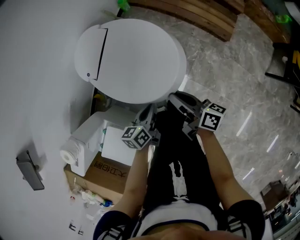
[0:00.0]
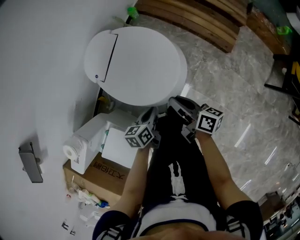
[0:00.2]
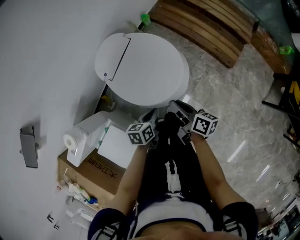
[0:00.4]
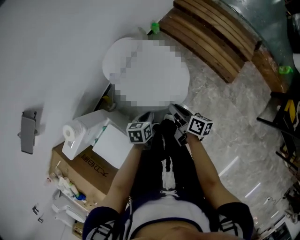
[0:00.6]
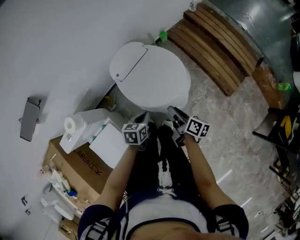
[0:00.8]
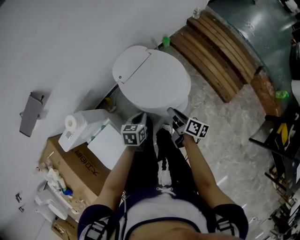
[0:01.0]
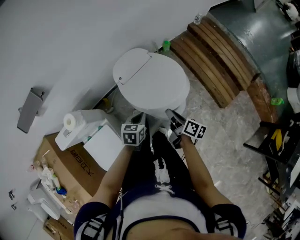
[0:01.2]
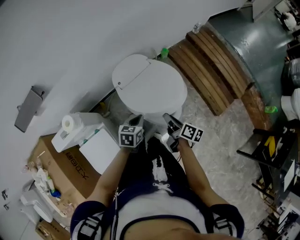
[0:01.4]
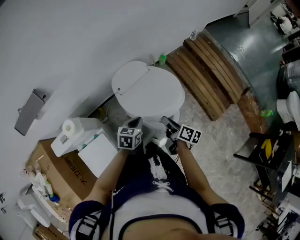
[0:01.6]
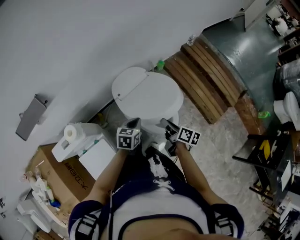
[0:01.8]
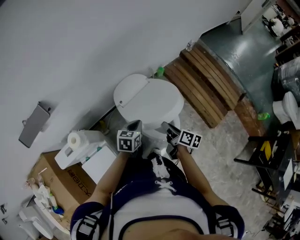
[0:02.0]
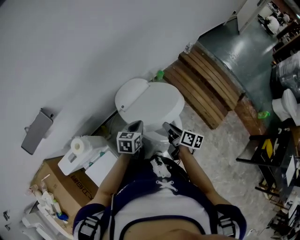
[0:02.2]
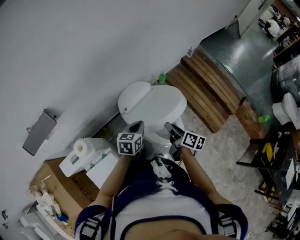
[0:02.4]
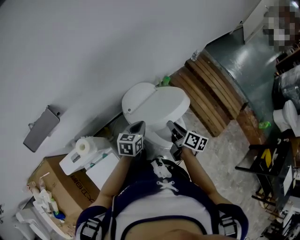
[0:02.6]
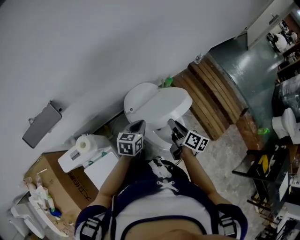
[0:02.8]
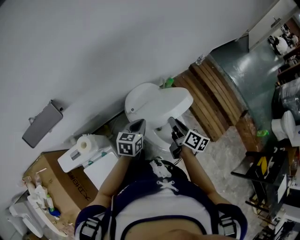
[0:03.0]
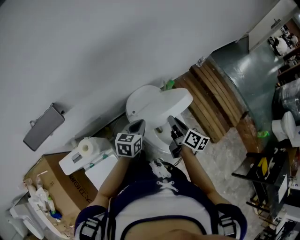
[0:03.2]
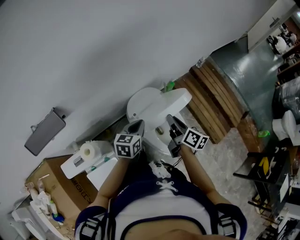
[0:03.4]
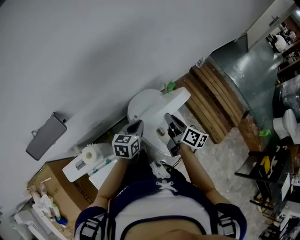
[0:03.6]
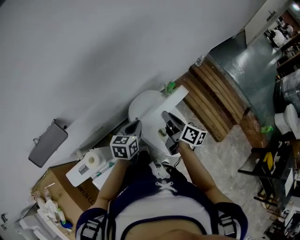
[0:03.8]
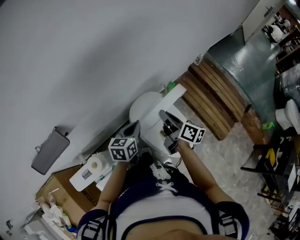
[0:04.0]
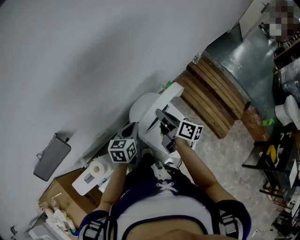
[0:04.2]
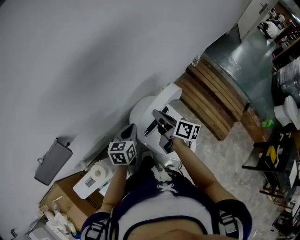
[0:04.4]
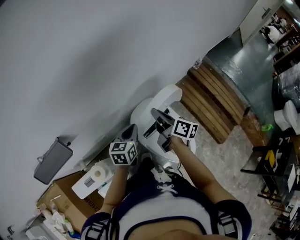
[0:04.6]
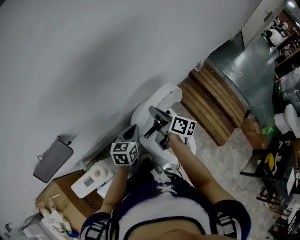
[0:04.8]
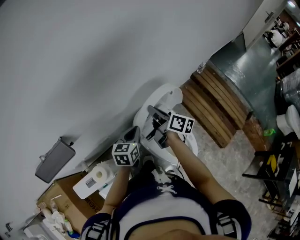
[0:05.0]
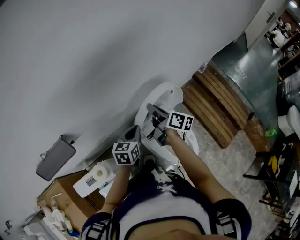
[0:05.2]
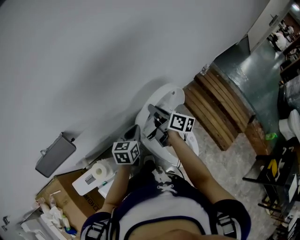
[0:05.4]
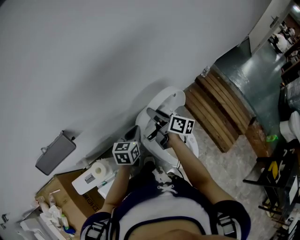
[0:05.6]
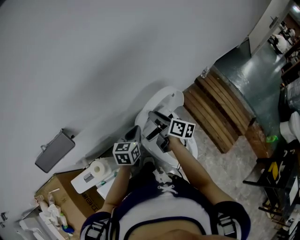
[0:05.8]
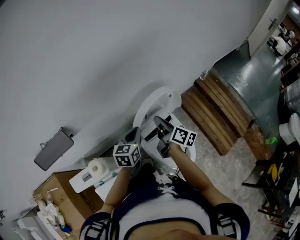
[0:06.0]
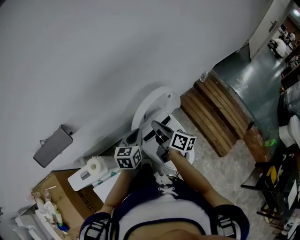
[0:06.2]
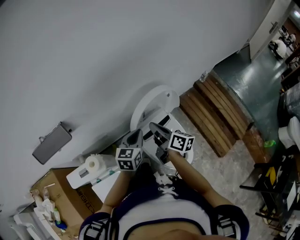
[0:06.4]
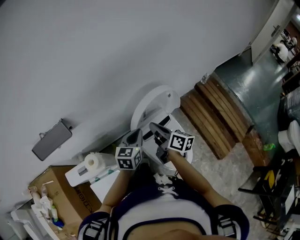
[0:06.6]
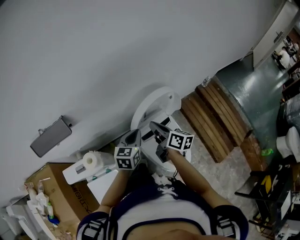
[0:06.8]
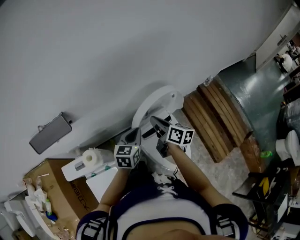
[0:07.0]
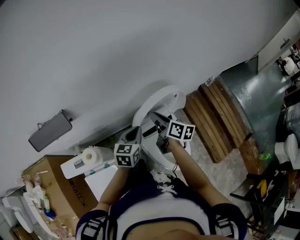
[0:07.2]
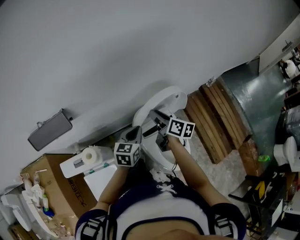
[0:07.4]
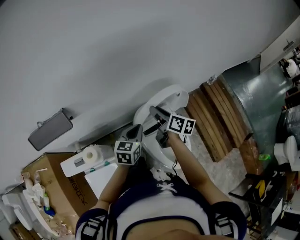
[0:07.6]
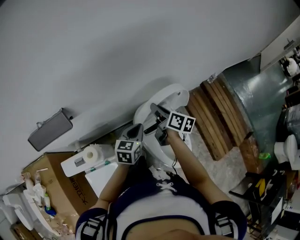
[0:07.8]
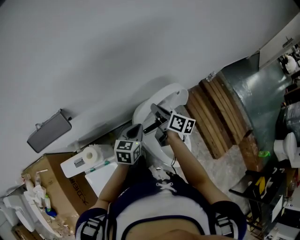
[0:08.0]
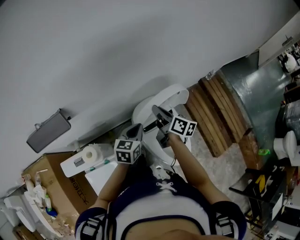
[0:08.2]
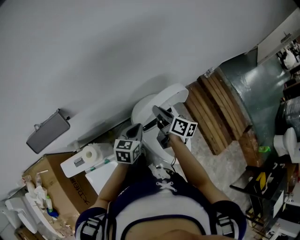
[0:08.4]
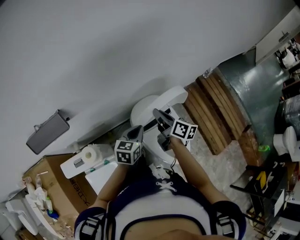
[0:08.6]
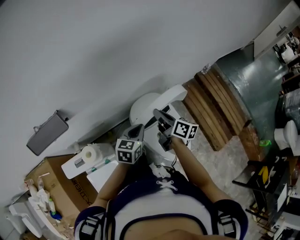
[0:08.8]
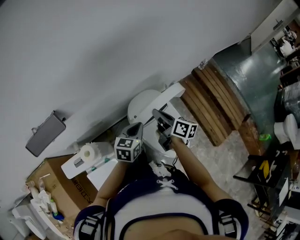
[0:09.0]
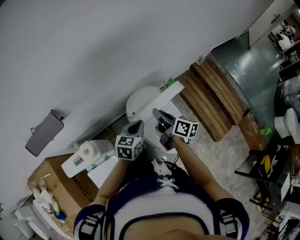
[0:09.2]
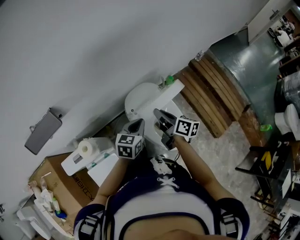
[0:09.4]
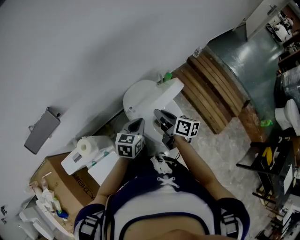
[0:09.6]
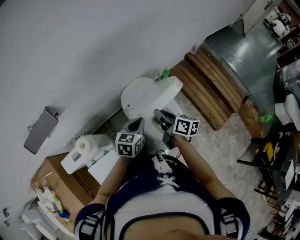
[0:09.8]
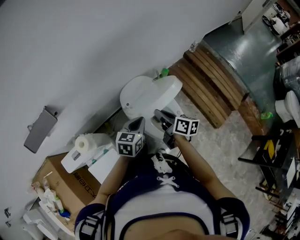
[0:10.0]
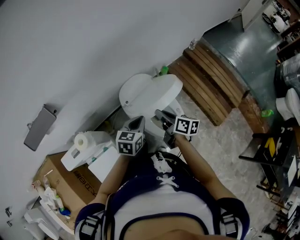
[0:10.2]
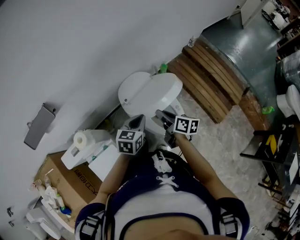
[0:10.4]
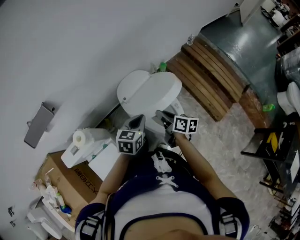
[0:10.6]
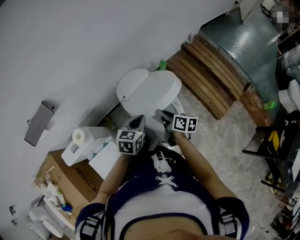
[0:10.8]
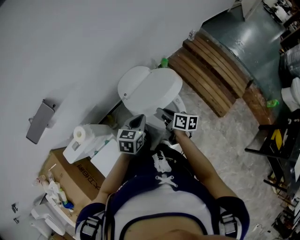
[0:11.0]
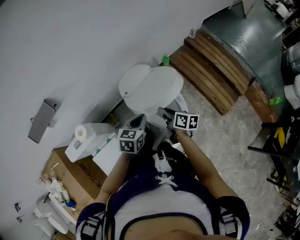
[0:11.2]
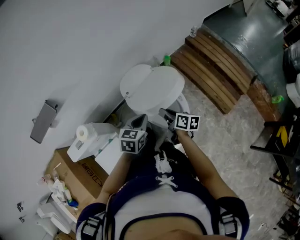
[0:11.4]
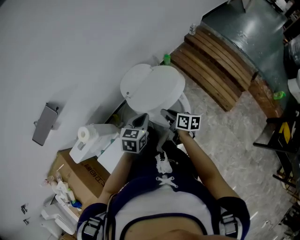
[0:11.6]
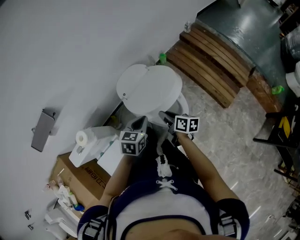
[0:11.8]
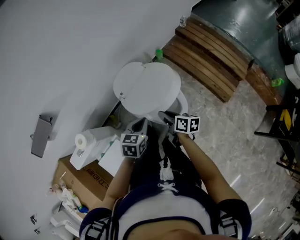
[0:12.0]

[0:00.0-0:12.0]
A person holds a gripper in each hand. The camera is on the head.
0.0 to 1.6 s: The left gripper goes approximately 20 cm upward, to the left and forward, and rotates approximately 30 degrees. Meanwhile the right gripper heads upward, forward and to the left, covering about 10 cm.
1.6 to 3.0 s: The left gripper goes some 15 cm to the left, forward and upward, while the right gripper heads upward, forward and to the left, covering roughly 20 cm.
3.0 to 4.4 s: The grippers both shift forward and to the left by some 15 cm.
4.4 to 6.0 s: The right gripper opens, then closes once more.
6.0 to 7.6 s: The right gripper shifts by some 5 cm.
7.6 to 9.0 s: The left gripper shifts by some 5 cm. Meanwhile the right gripper moves backward, about 5 cm.
9.0 to 10.4 s: The left gripper travels backward and to the right by some 10 cm; the right gripper moves backward, to the right and downward, about 15 cm.
10.4 to 12.0 s: The left gripper is displaced backward by roughly 5 cm. The right gripper heads downward and backward, covering approximately 10 cm.

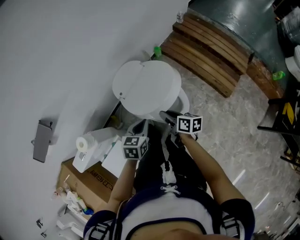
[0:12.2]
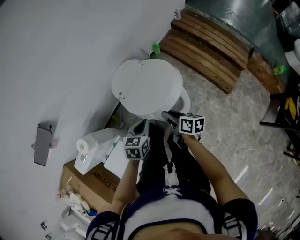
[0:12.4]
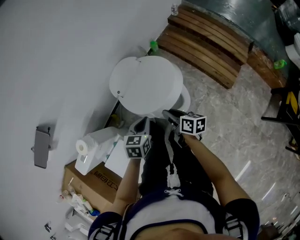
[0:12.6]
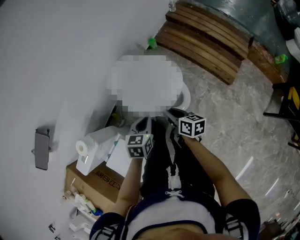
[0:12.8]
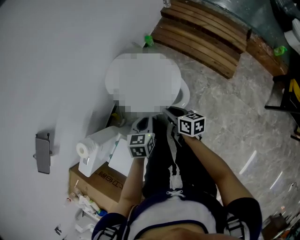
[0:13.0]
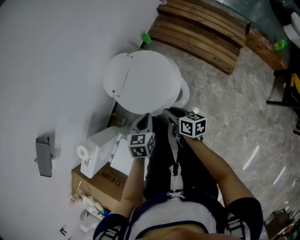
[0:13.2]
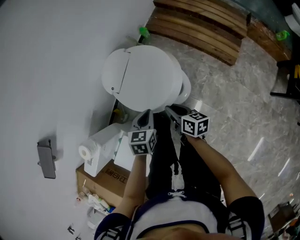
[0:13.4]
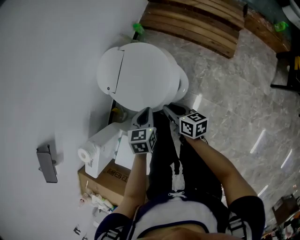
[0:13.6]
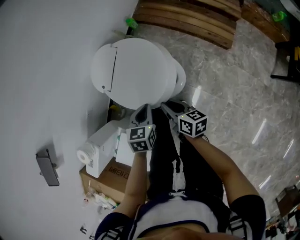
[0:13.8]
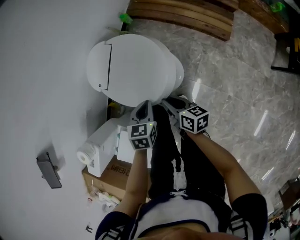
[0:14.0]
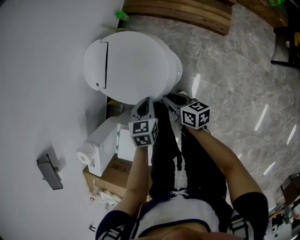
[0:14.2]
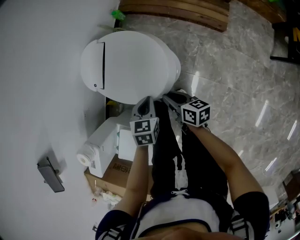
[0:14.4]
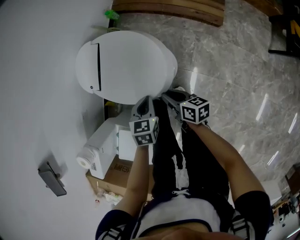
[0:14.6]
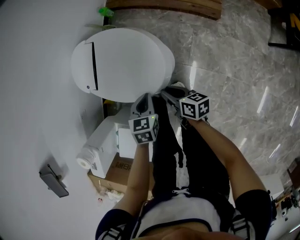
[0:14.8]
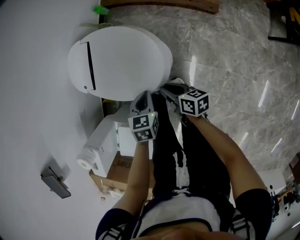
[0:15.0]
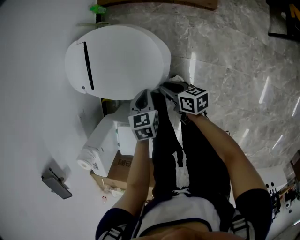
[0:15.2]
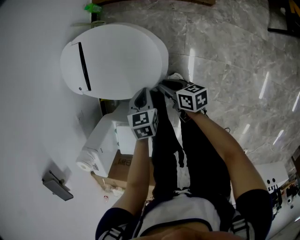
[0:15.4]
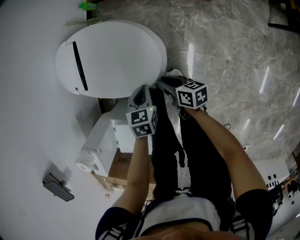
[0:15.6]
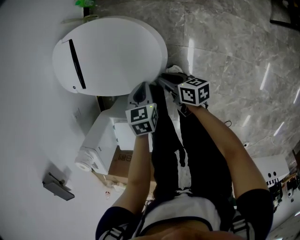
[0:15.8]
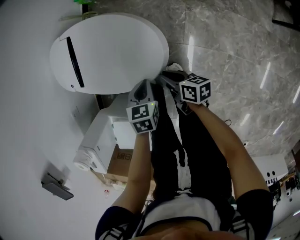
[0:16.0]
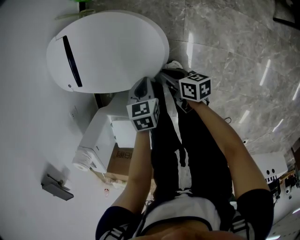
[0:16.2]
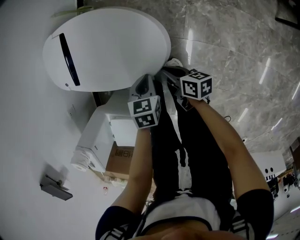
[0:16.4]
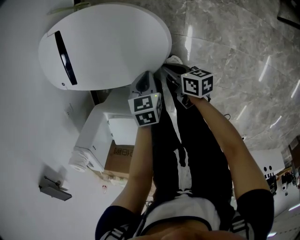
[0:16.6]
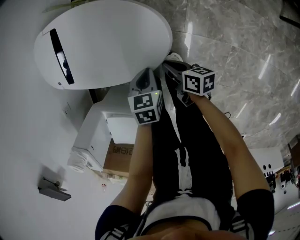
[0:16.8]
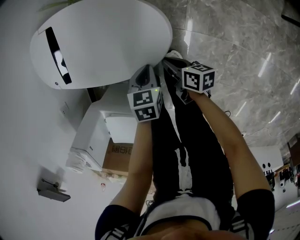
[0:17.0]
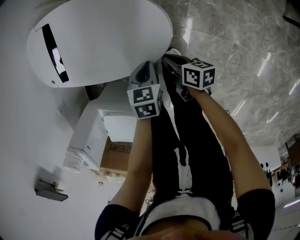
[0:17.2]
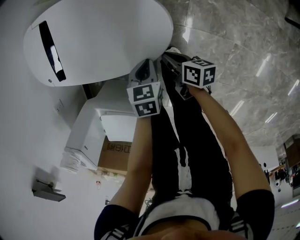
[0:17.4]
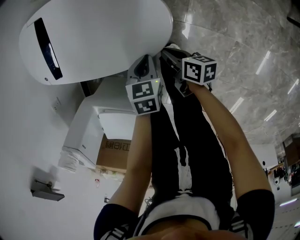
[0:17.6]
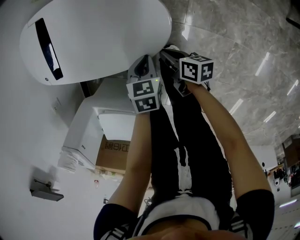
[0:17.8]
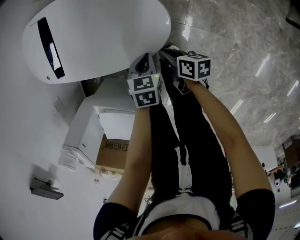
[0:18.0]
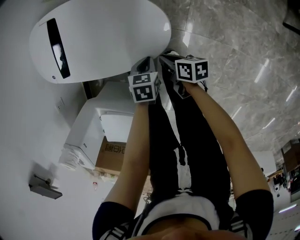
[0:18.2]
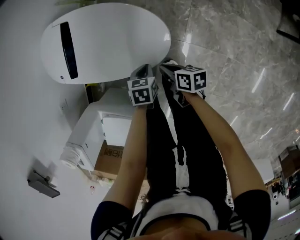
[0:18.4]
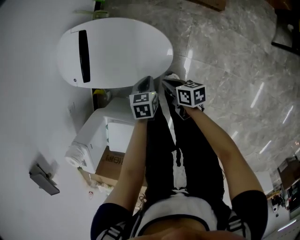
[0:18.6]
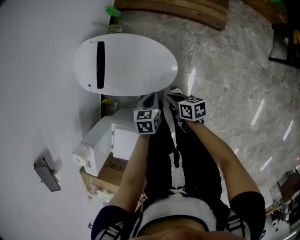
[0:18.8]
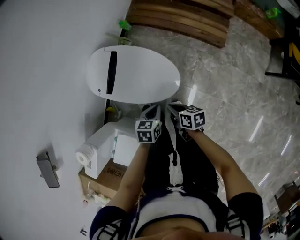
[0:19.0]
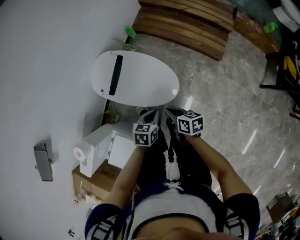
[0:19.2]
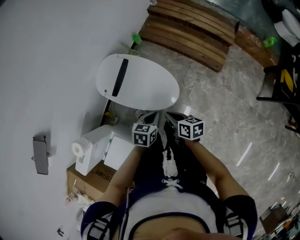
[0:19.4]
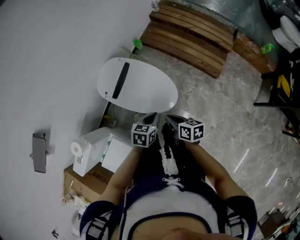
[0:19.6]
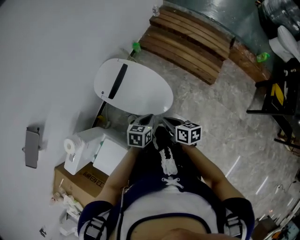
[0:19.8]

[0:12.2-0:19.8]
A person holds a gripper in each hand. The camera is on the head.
12.2 to 13.8 s: The left gripper heads downward and to the right, covering about 10 cm. Meanwhile the right gripper shifts about 10 cm downward and backward.
13.8 to 15.2 s: The right gripper shifts about 10 cm downward, while the left gripper heads downward and to the right, covering roughly 10 cm.
15.2 to 16.8 s: The two grippers go roughly 15 cm downward.
16.8 to 18.2 s: The left gripper moves downward, about 10 cm.
18.2 to 19.8 s: The grippers both shift upward by approximately 40 cm. The left gripper changes its angle by some 20 degrees. The right gripper changes its angle by some 30 degrees.

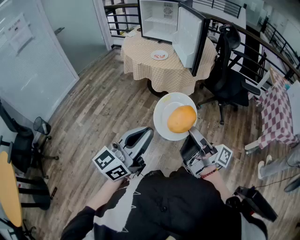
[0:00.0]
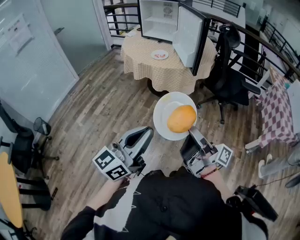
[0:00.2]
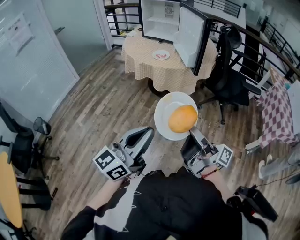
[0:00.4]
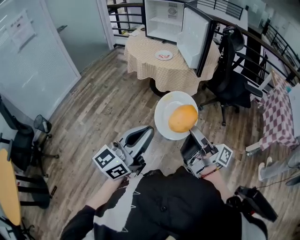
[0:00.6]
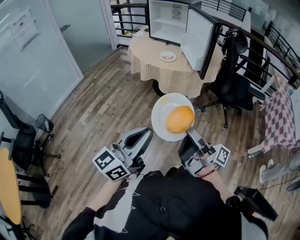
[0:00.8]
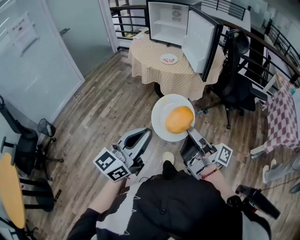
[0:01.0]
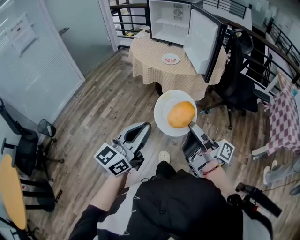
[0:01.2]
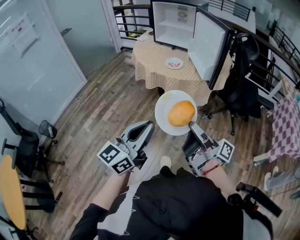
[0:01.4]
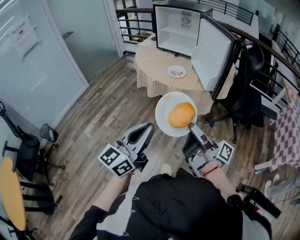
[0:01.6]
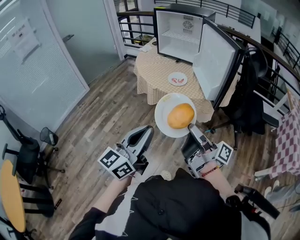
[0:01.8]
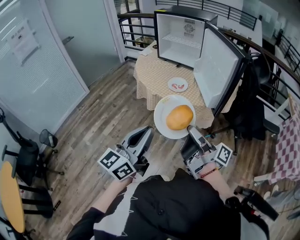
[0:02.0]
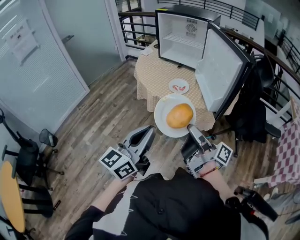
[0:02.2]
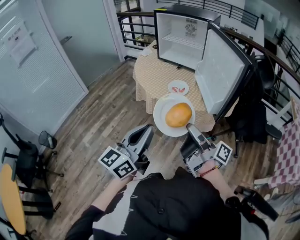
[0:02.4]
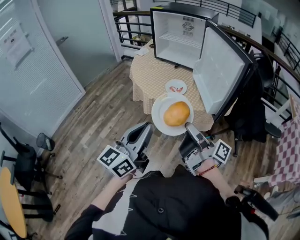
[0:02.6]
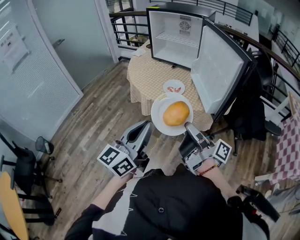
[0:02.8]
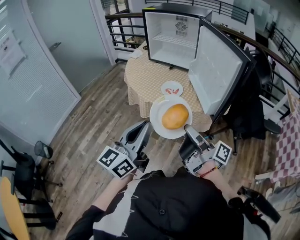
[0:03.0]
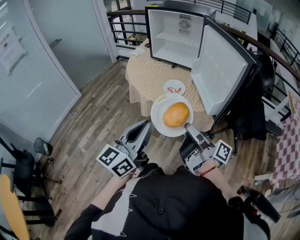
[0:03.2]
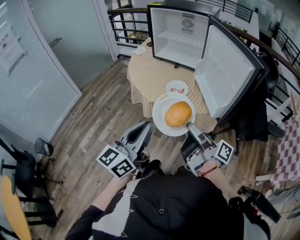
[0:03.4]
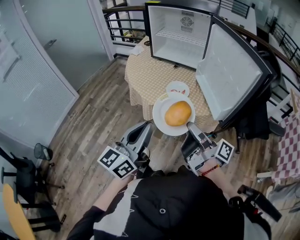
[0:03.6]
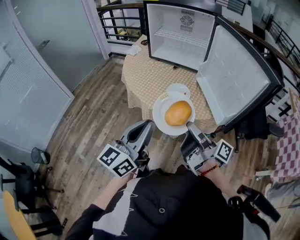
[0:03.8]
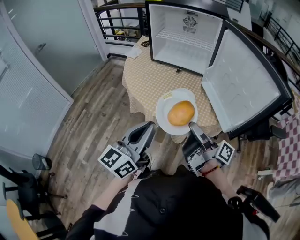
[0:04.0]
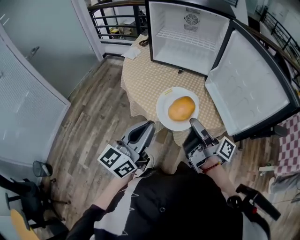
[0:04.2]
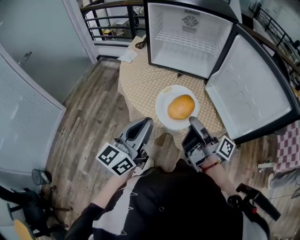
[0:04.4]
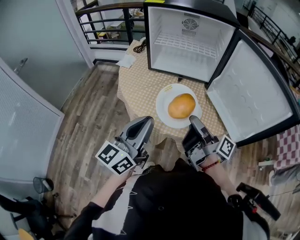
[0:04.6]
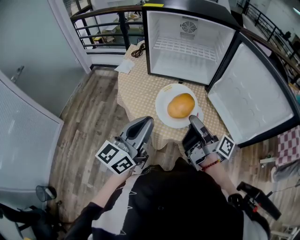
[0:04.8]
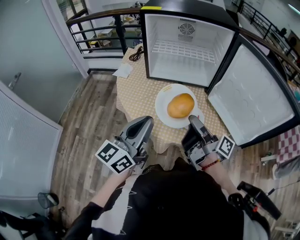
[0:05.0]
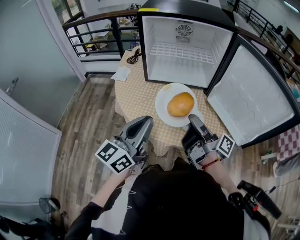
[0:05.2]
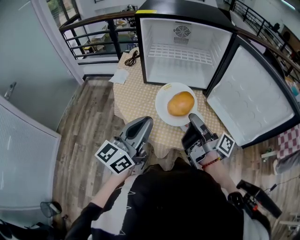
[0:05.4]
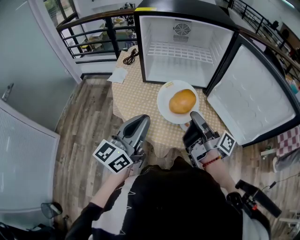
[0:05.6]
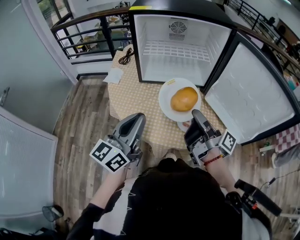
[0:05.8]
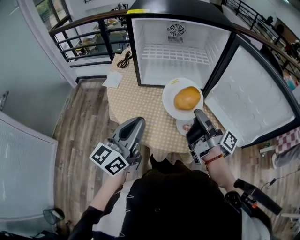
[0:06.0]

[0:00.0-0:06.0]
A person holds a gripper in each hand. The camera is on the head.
0.0 to 1.6 s: The grippers both shift forward and to the left by about 20 cm.
1.6 to 3.0 s: Both grippers travel together forward, roughly 20 cm.
3.0 to 4.4 s: The two grippers go approximately 30 cm forward and to the left.
4.4 to 6.0 s: The left gripper heads forward and to the left, covering approximately 15 cm, while the right gripper heads forward, covering roughly 15 cm.
